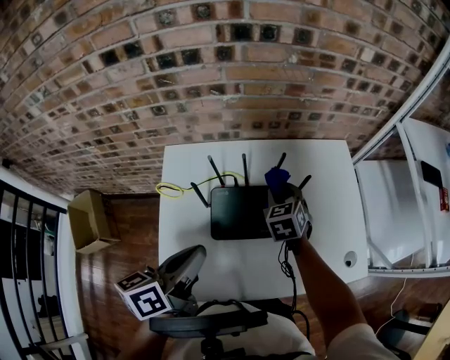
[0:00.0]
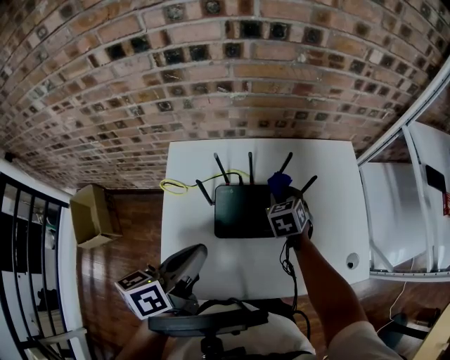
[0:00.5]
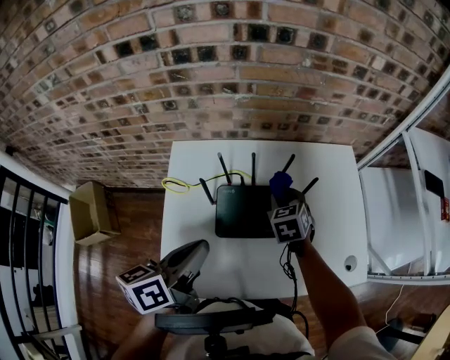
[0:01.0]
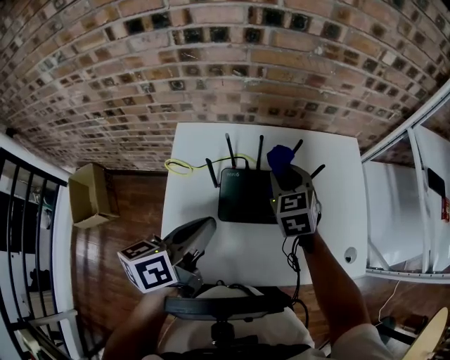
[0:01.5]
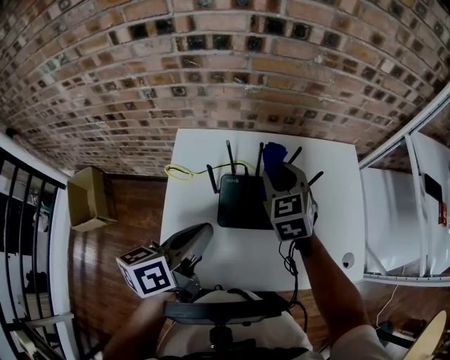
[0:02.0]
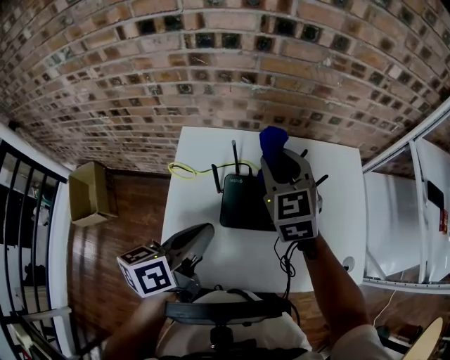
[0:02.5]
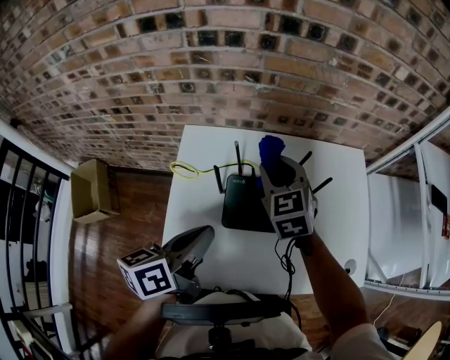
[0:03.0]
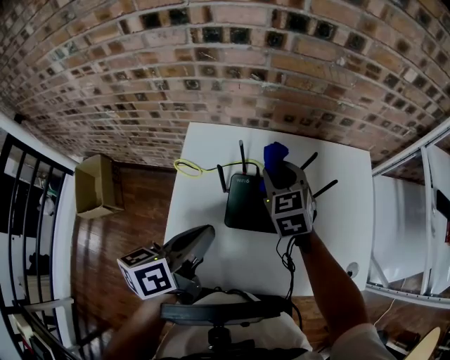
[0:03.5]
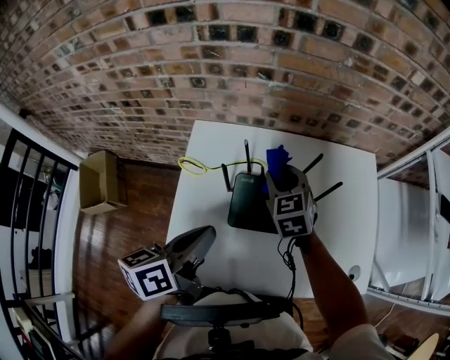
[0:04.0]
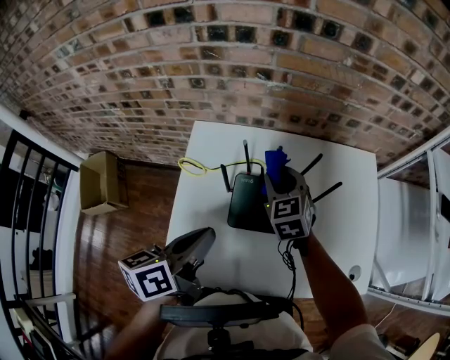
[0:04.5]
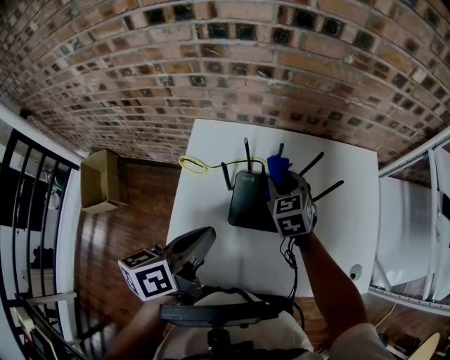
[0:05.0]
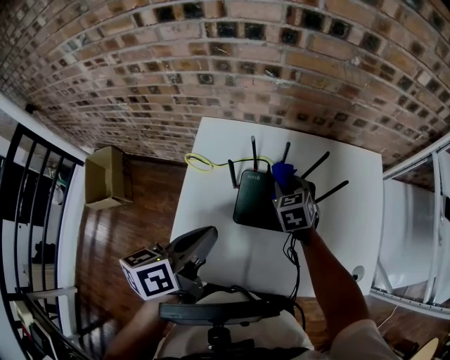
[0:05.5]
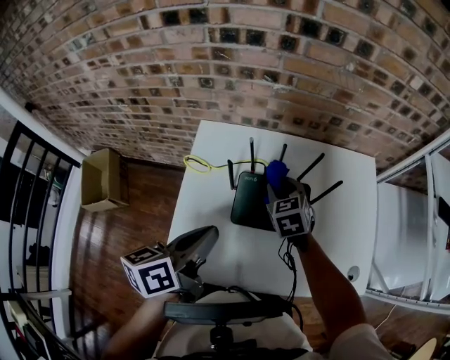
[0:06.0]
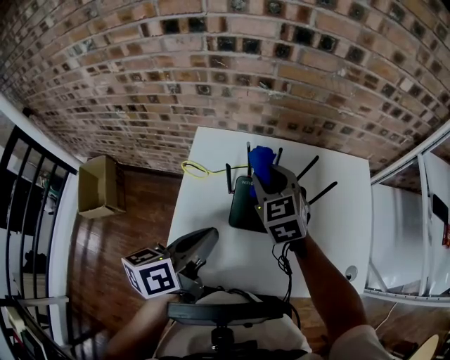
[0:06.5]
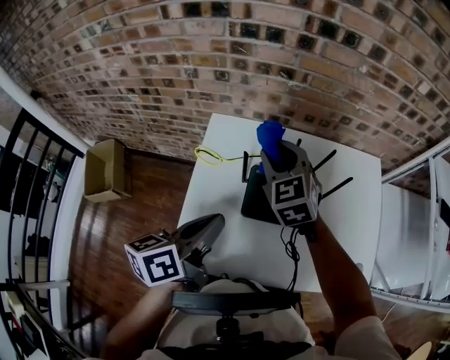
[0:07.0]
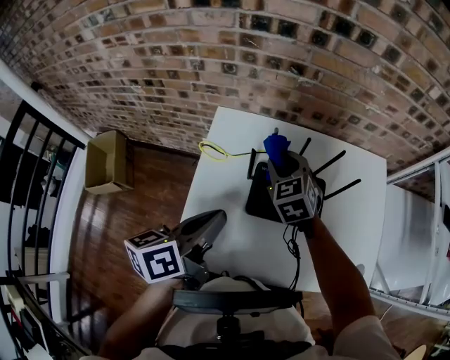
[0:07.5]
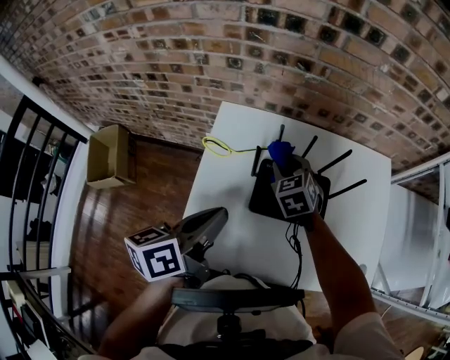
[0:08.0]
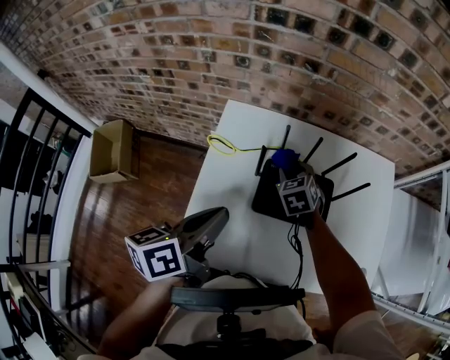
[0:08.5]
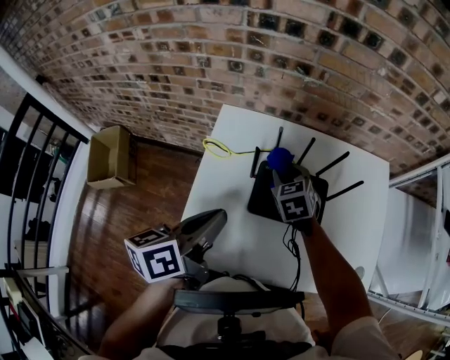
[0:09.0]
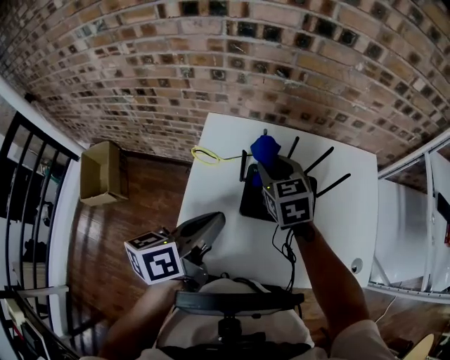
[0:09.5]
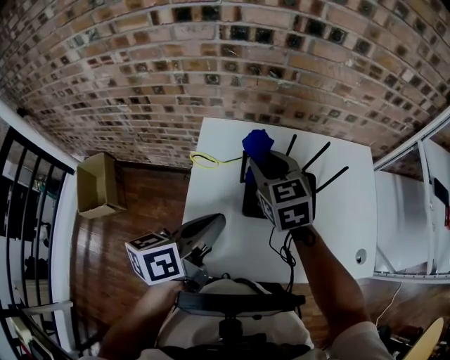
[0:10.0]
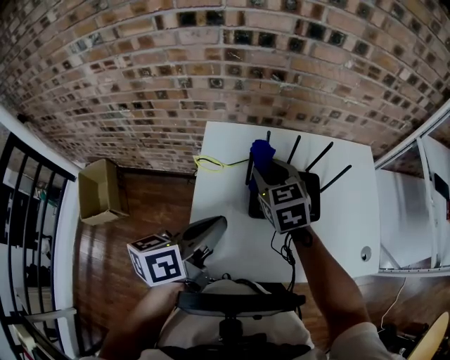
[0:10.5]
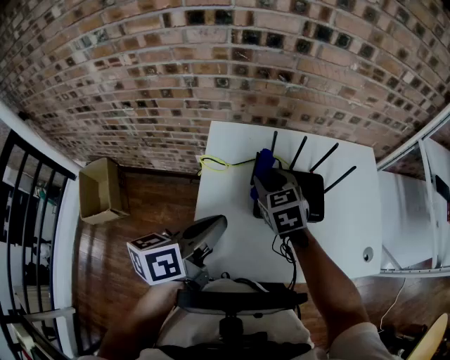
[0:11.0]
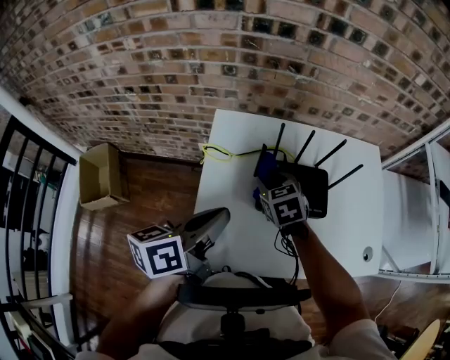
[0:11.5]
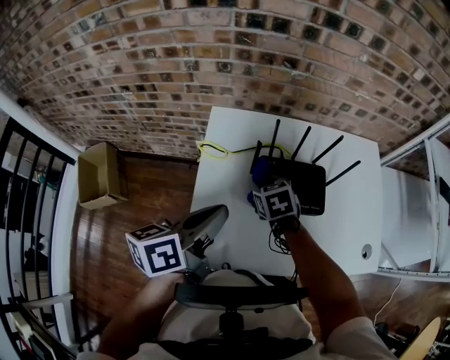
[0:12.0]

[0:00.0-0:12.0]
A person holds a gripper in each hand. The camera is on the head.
0:00.0 to 0:02.0: The right gripper goes roughly 10 cm upward and to the left.
0:02.0 to 0:04.0: The right gripper heads downward, covering roughly 5 cm.
0:06.0 to 0:08.0: The right gripper moves to the left, some 5 cm, and travels upward and back again, roughly 15 cm each way.
0:08.0 to 0:10.0: The right gripper moves upward and backward, approximately 15 cm, and rotates approximately 20 degrees.
0:10.0 to 0:12.0: The right gripper shifts about 15 cm downward, and turns by roughly 30 degrees.

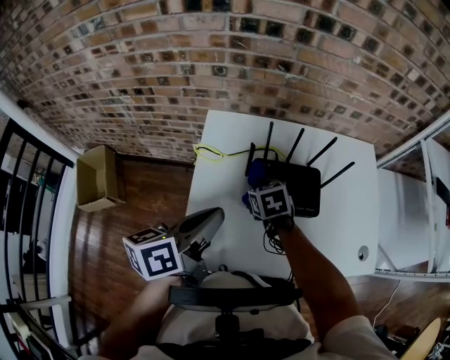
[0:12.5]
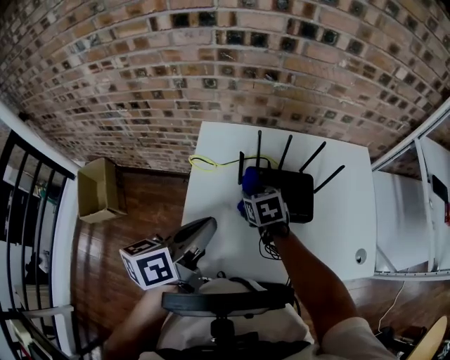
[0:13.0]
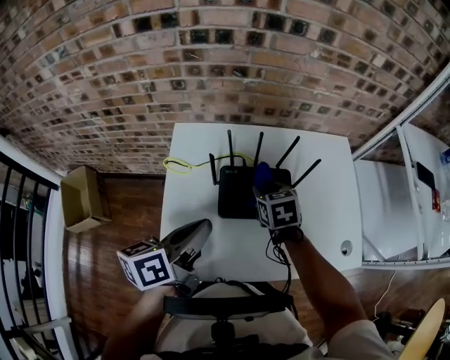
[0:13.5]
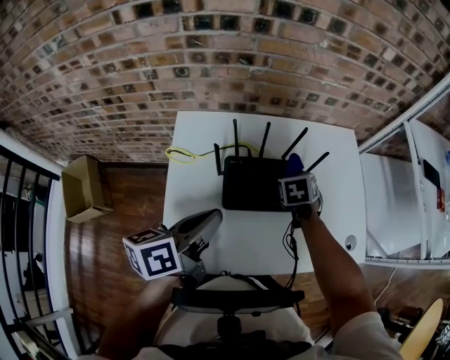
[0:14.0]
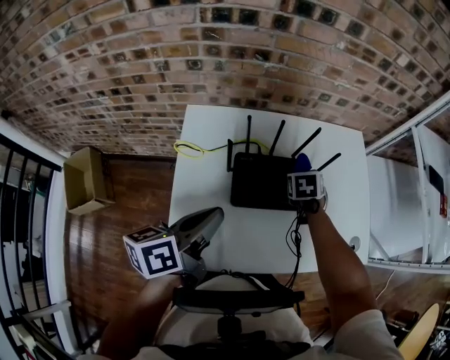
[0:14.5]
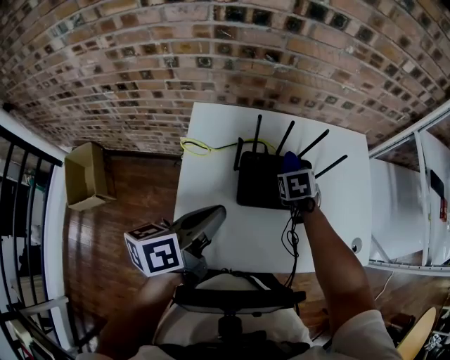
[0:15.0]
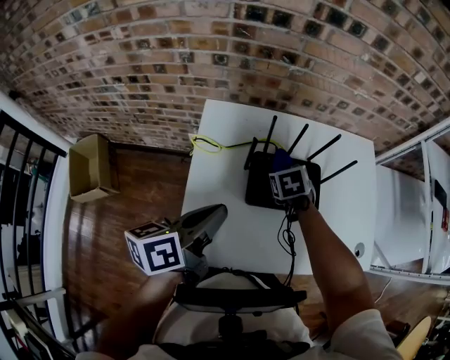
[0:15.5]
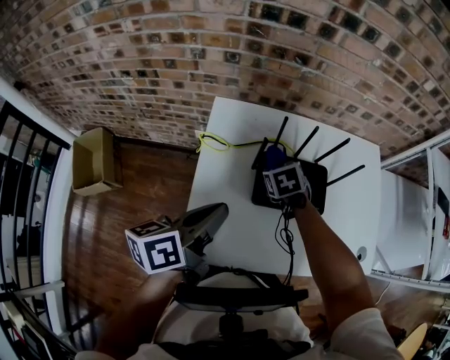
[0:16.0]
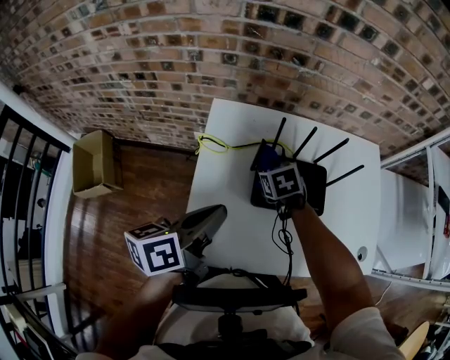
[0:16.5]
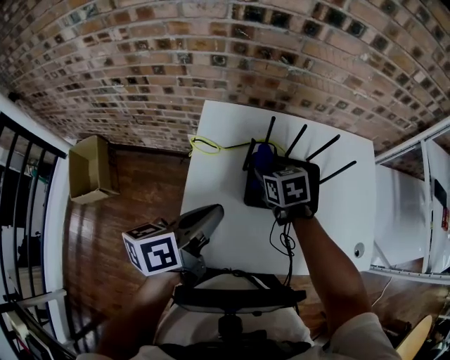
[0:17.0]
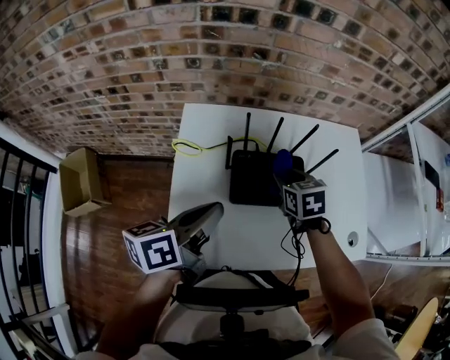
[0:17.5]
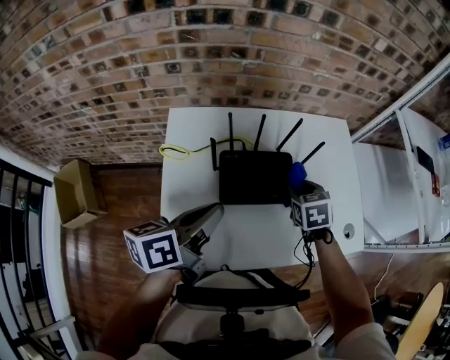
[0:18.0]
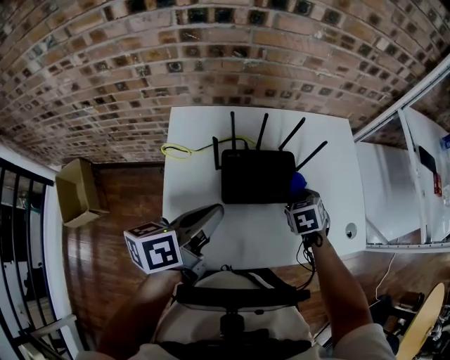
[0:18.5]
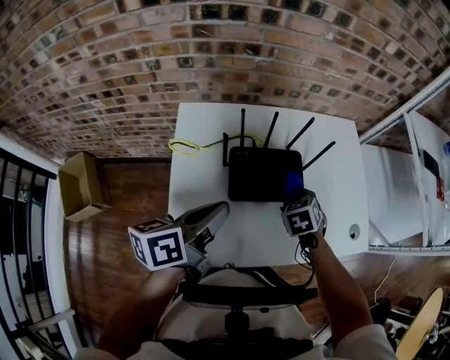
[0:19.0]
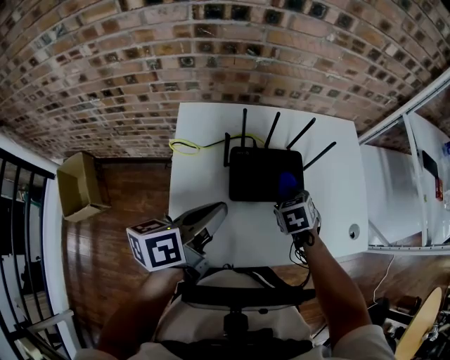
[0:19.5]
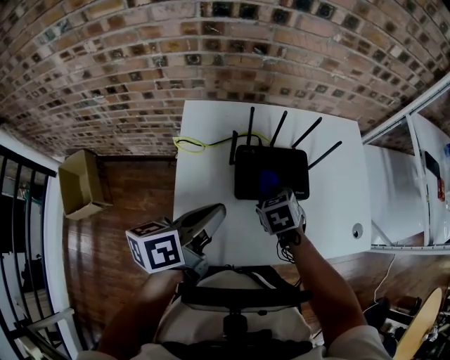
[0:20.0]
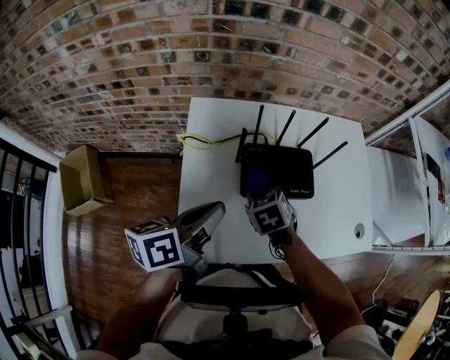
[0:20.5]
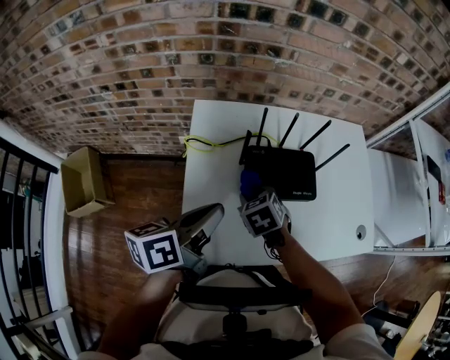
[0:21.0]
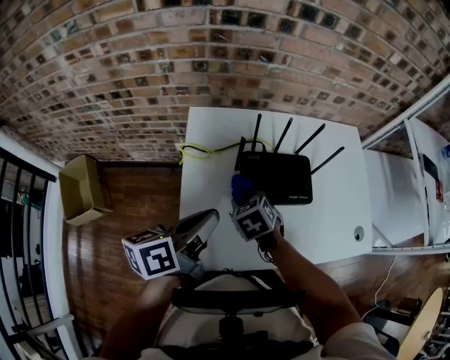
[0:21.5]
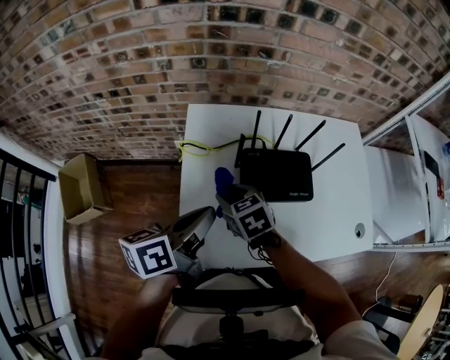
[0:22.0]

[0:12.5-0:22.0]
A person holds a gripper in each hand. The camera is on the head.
0:12.5 to 0:14.5: The left gripper ends up approximately 5 cm from where it was. The right gripper moves roughly 20 cm, and changes its angle by about 30 degrees.
0:14.5 to 0:16.5: The left gripper heads to the left, covering roughly 5 cm; the right gripper shifts some 20 cm to the left, and changes its angle by some 30 degrees.
0:16.5 to 0:18.0: The left gripper shifts roughly 10 cm to the right. The right gripper moves to the right, roughly 25 cm.
0:18.0 to 0:20.0: The left gripper shifts by some 5 cm, while the right gripper moves to the left and backward, some 15 cm.
0:20.0 to 0:22.0: The right gripper shifts roughly 15 cm to the left, and swivels about 20 degrees.

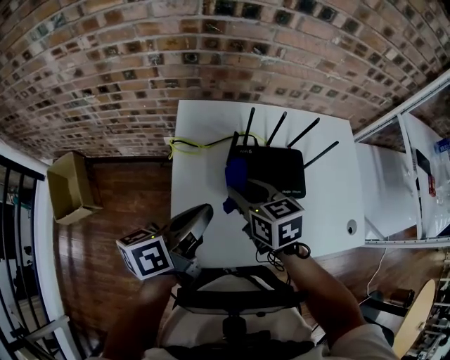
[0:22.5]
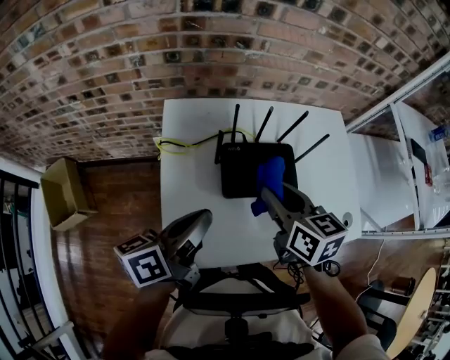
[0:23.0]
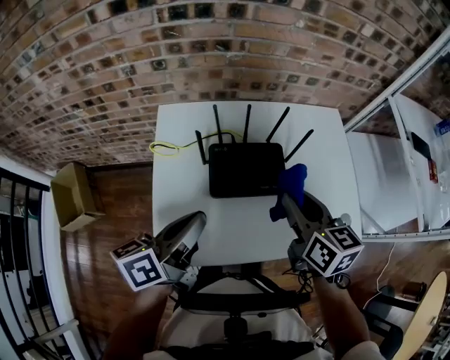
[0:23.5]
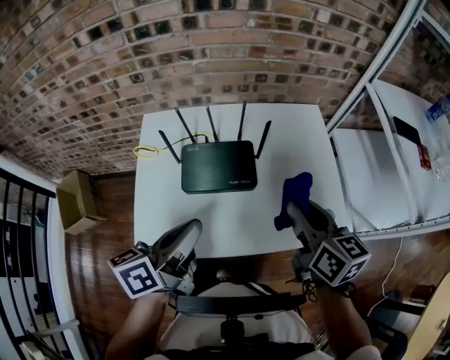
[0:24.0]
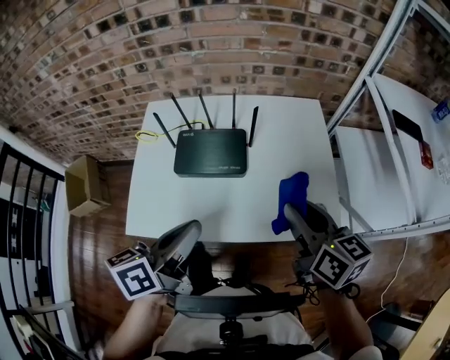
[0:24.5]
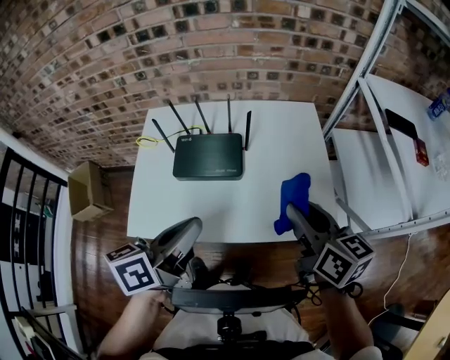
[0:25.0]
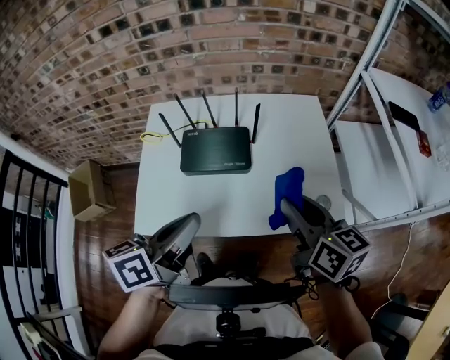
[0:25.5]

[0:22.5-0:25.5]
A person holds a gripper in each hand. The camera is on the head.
0:22.5 to 0:24.0: The left gripper is displaced to the right by roughly 20 cm. Meanwhile the right gripper moves to the right, approximately 40 cm, and rotates roughly 30 degrees.
0:24.0 to 0:25.5: The right gripper shifts approximately 5 cm backward. Meanwhile the left gripper goes about 10 cm backward and to the right.

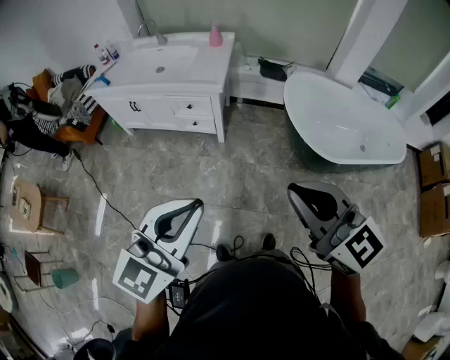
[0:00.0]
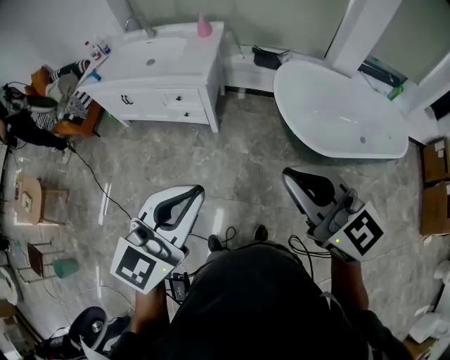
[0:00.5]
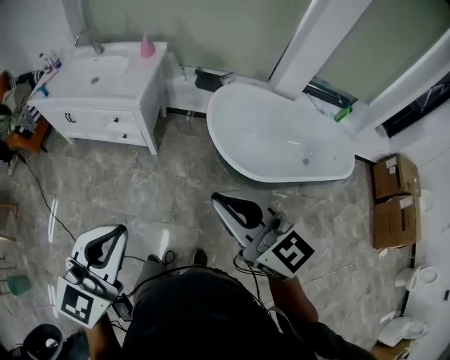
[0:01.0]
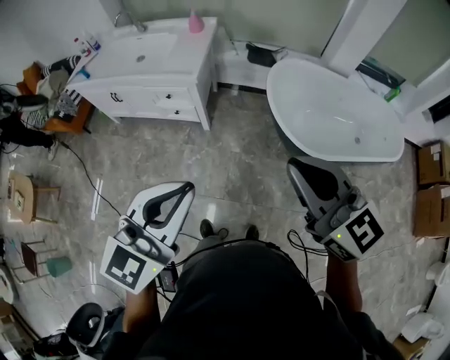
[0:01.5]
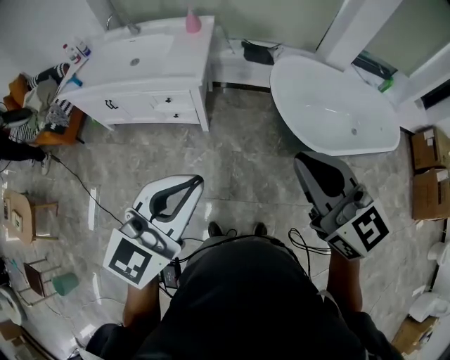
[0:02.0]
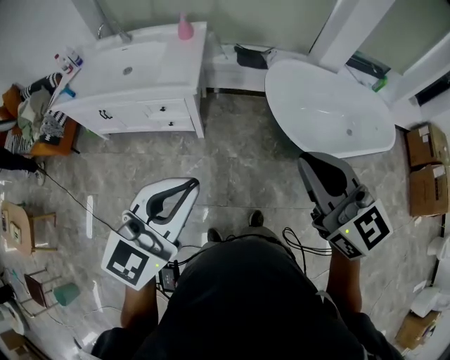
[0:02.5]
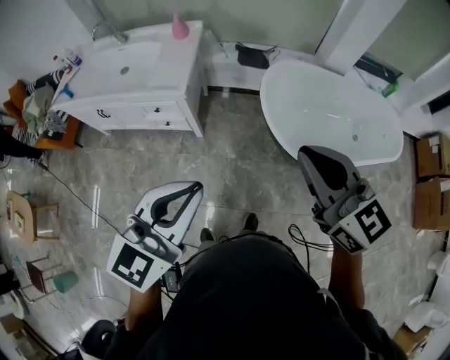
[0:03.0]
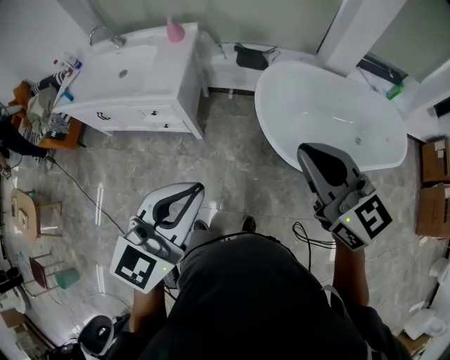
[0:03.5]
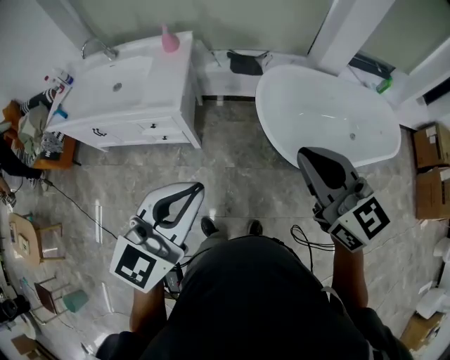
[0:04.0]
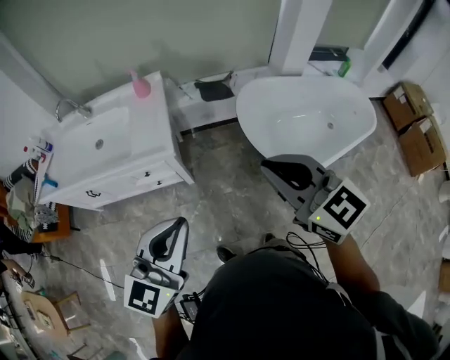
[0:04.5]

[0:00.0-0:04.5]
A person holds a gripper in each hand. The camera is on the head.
0:00.0 to 0:02.0: Both grippers travel together forward, some 10 cm. The right gripper goes to the right and returns, about 15 cm each way. The left gripper reaches roughly 15 cm to the right, then returns.
0:02.0 to 0:04.5: The two grippers go some 15 cm forward. The left gripper travels to the right and back again, some 15 cm each way.
